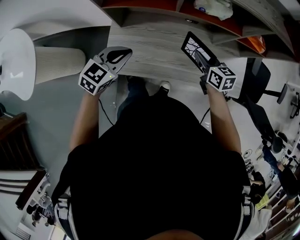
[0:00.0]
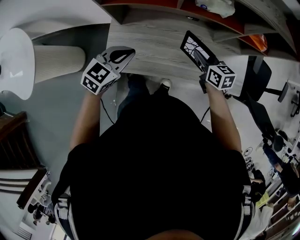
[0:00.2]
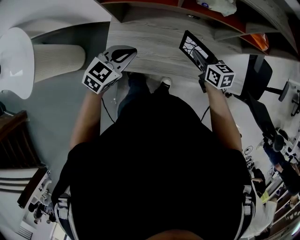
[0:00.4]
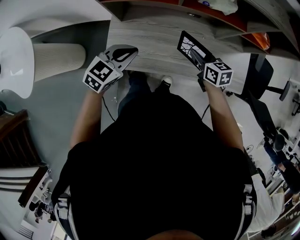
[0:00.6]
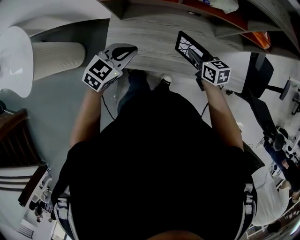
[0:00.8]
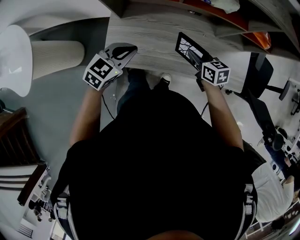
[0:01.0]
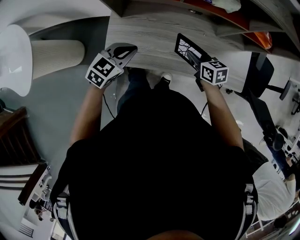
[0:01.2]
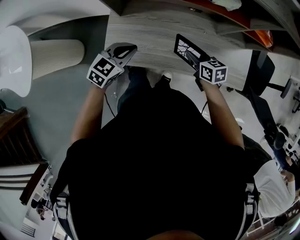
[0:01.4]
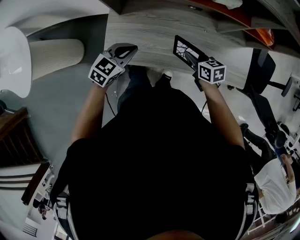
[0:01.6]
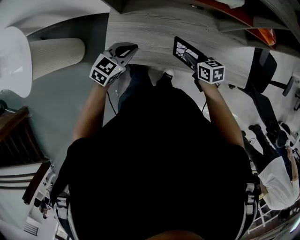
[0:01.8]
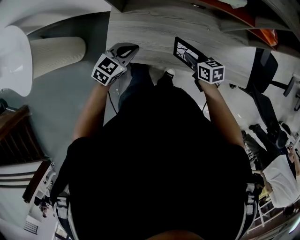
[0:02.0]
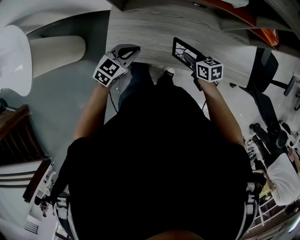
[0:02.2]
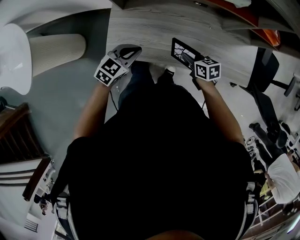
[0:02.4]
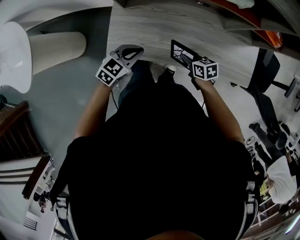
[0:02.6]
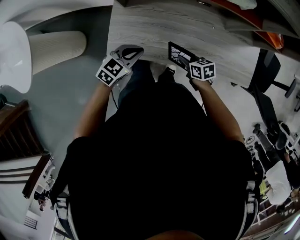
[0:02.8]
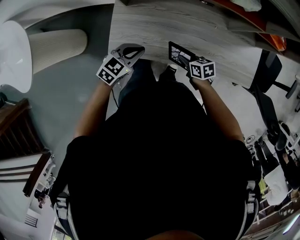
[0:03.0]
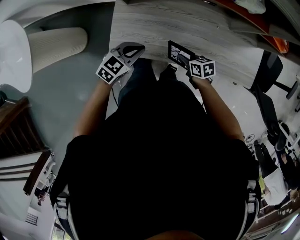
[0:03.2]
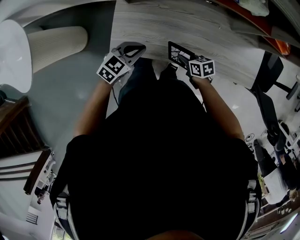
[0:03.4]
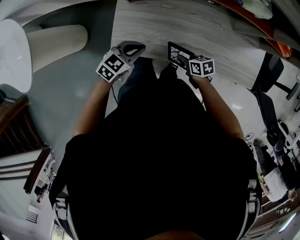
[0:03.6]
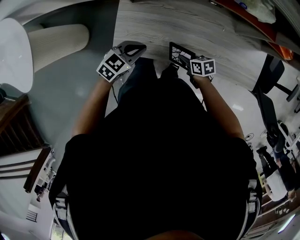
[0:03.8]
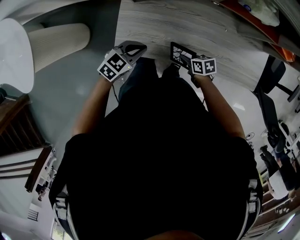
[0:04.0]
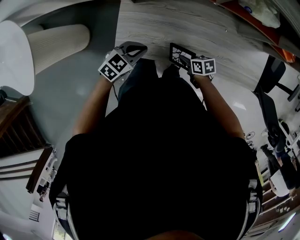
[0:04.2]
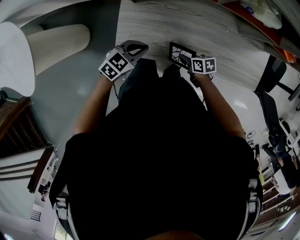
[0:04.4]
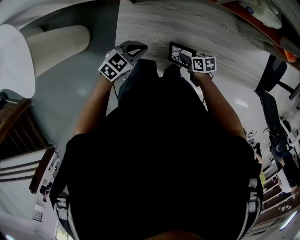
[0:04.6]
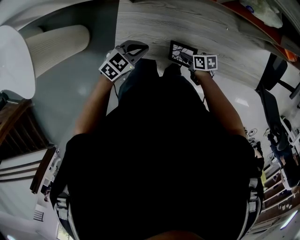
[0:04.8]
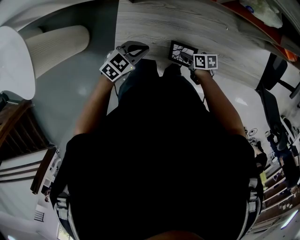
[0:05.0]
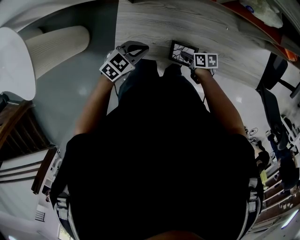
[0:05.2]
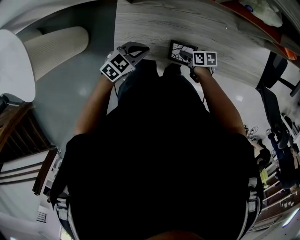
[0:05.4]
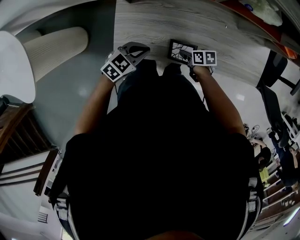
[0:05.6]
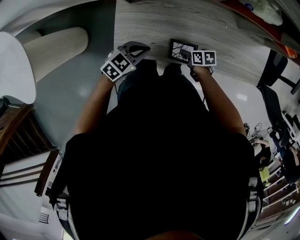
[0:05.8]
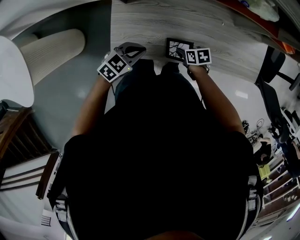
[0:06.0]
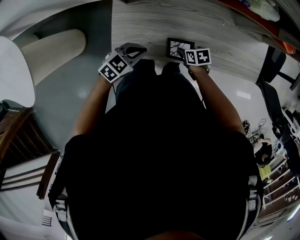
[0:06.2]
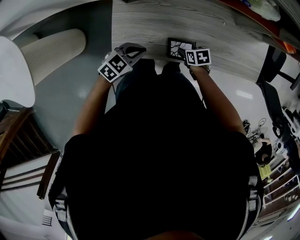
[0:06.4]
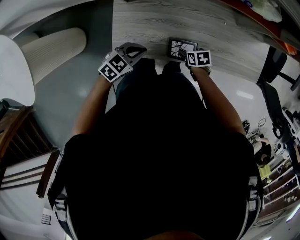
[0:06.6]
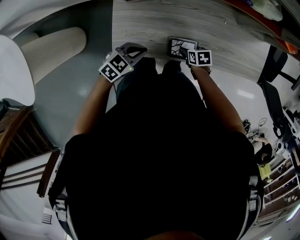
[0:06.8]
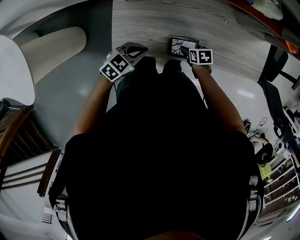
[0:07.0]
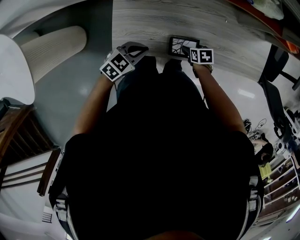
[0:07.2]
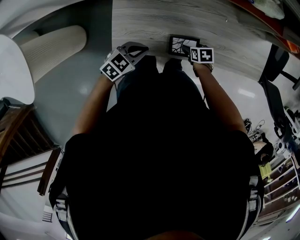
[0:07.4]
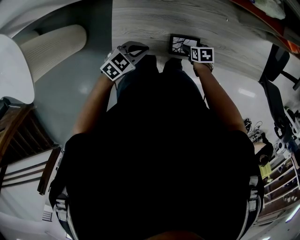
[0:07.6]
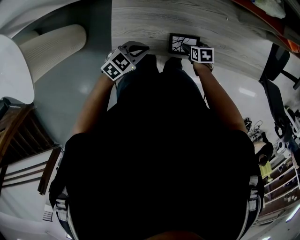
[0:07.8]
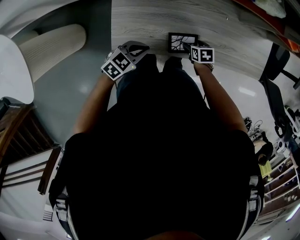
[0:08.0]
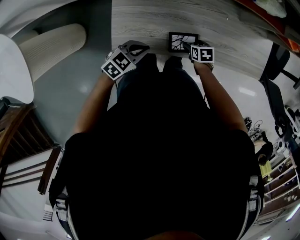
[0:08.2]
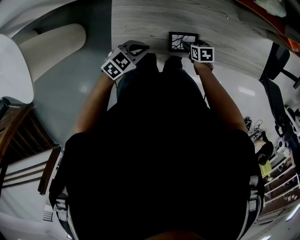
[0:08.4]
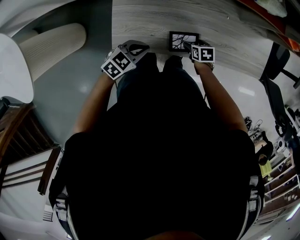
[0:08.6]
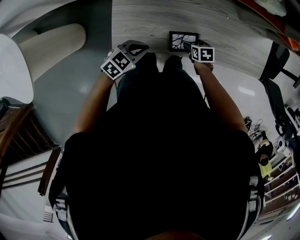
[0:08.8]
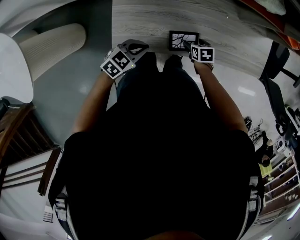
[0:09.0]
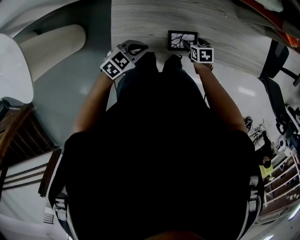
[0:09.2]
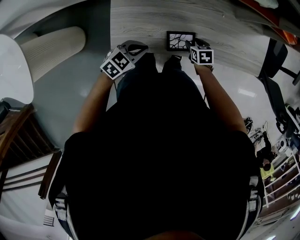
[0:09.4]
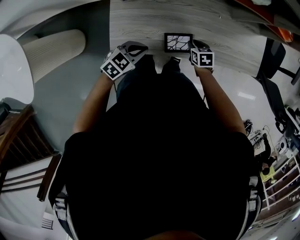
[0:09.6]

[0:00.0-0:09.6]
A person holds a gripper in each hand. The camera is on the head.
0.0 to 1.6 s: The left gripper travels downward by approximately 10 cm. Meanwhile the right gripper travels downward and backward by approximately 10 cm.
1.6 to 3.2 s: The left gripper goes roughly 5 cm downward; the right gripper heads downward, covering about 10 cm.
3.2 to 4.8 s: The right gripper is displaced downward by approximately 5 cm.
4.8 to 6.4 s: The right gripper opens up.
6.4 to 8.0 s: The right gripper opens up.
8.0 to 9.6 s: The right gripper travels upward by about 5 cm, and closes.

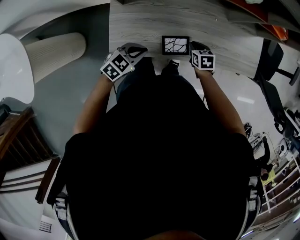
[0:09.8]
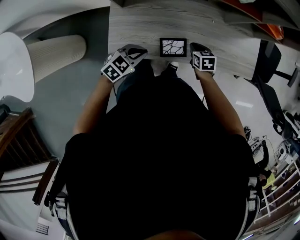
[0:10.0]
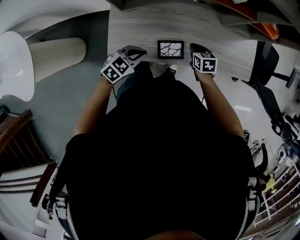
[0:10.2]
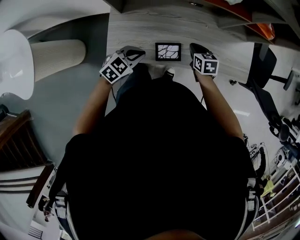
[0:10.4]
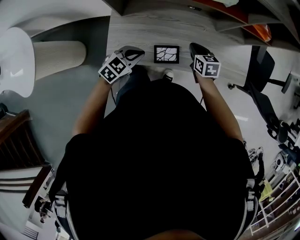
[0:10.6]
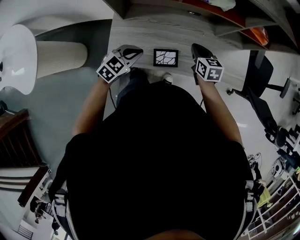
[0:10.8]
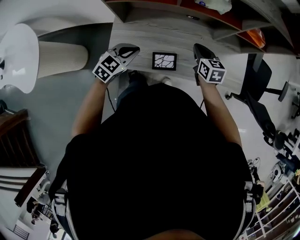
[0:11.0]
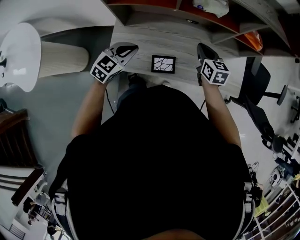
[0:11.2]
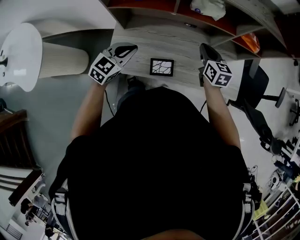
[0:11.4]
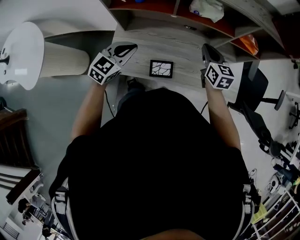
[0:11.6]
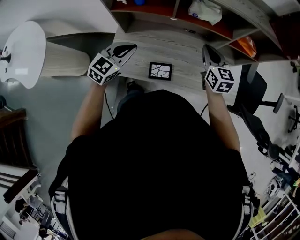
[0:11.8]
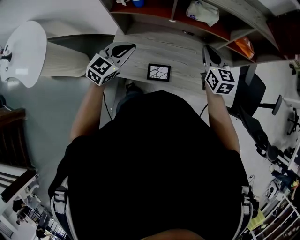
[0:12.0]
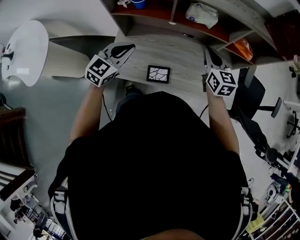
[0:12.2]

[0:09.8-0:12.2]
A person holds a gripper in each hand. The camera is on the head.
9.8 to 11.0 s: The right gripper is displaced upward by about 20 cm, and changes its angle by approximately 30 degrees, while the left gripper moves upward, about 10 cm.
11.0 to 12.2 s: The grippers both shift upward by roughly 15 cm.

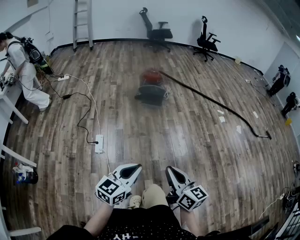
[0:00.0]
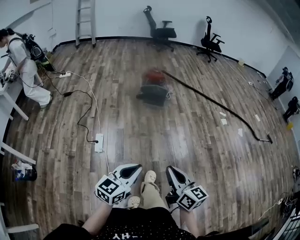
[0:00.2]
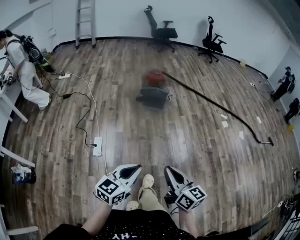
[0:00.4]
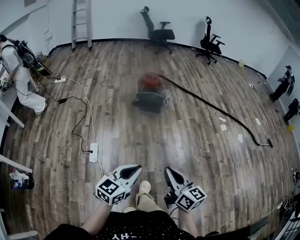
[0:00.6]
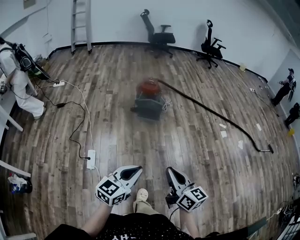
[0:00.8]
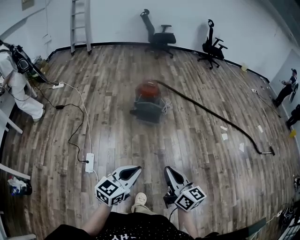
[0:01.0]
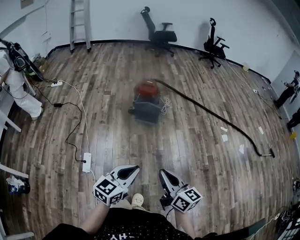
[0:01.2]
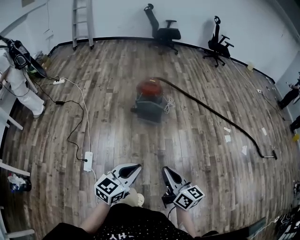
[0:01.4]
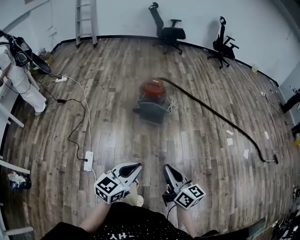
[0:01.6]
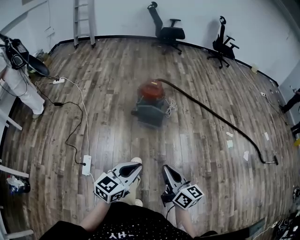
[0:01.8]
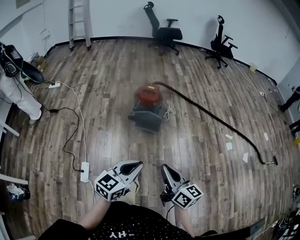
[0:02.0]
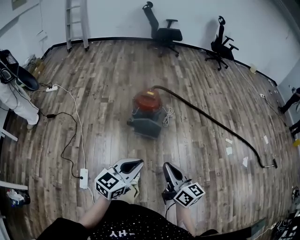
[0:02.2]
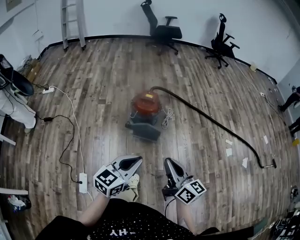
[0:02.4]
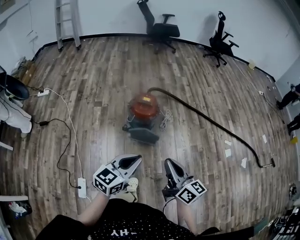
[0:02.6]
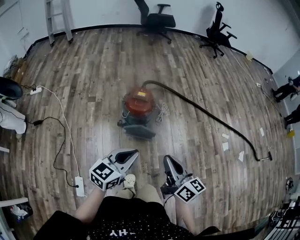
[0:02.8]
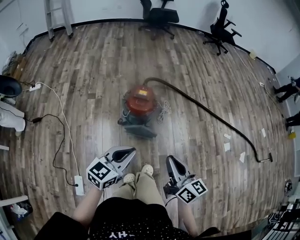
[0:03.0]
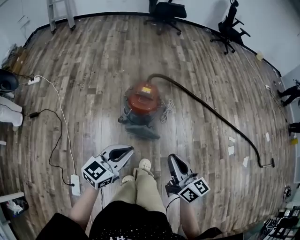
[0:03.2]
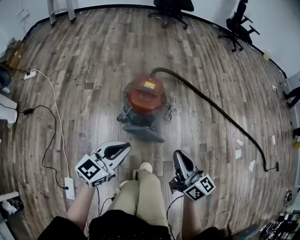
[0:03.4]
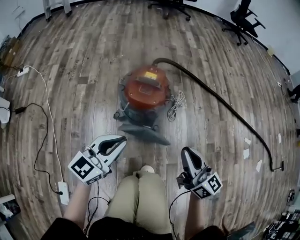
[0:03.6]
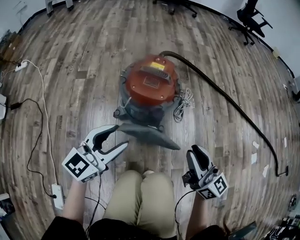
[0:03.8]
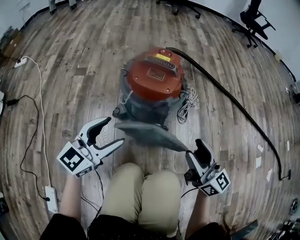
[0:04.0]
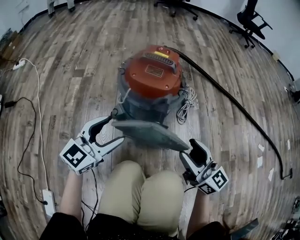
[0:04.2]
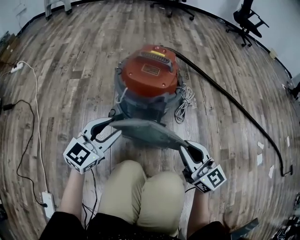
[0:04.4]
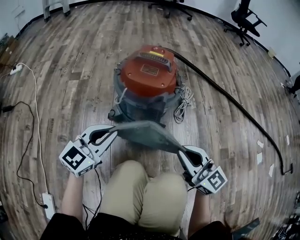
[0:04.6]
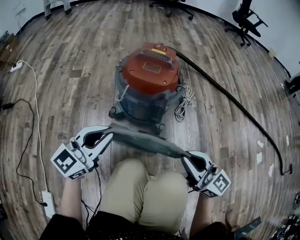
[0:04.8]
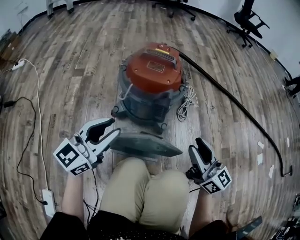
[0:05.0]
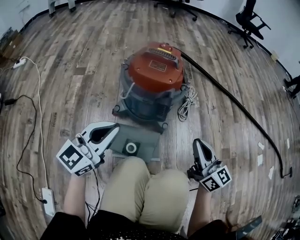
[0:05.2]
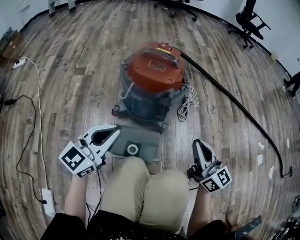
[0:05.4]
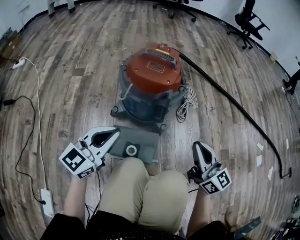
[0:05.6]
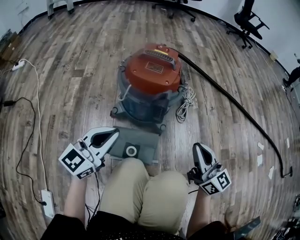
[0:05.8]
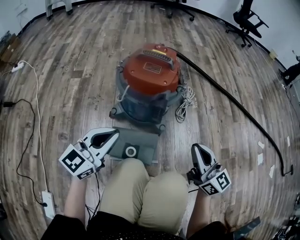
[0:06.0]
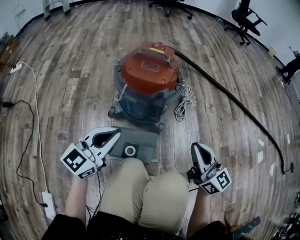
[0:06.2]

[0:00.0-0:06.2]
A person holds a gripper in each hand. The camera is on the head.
0.0 to 1.6 s: Both grippers move forward, some 40 cm.
1.6 to 3.2 s: Both grippers are carried forward, some 50 cm.
3.2 to 4.6 s: The two grippers go approximately 40 cm downward. The right gripper turns by about 30 degrees, and opens, then closes again; the left gripper opens and closes again.
4.6 to 6.2 s: The right gripper changes place by some 5 cm, and opens, then closes again.

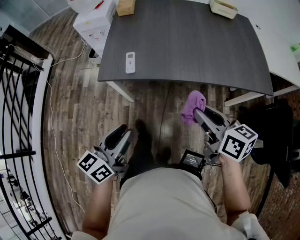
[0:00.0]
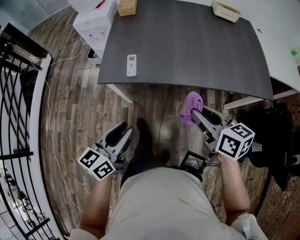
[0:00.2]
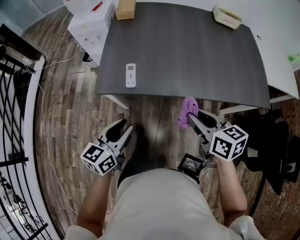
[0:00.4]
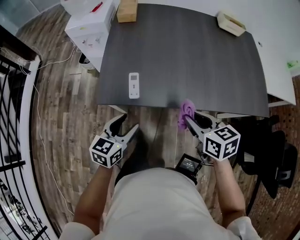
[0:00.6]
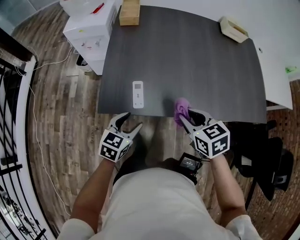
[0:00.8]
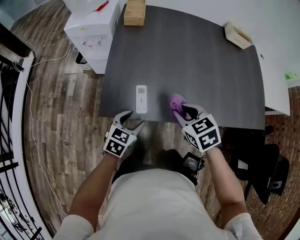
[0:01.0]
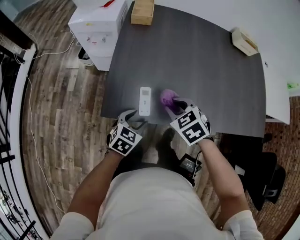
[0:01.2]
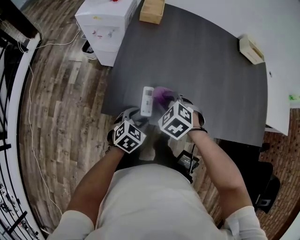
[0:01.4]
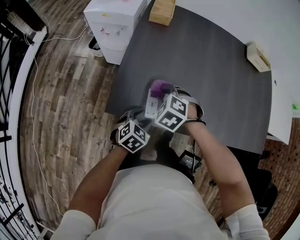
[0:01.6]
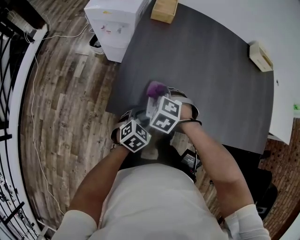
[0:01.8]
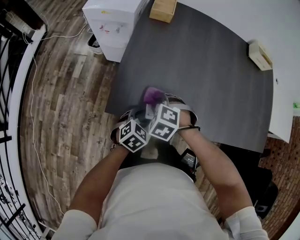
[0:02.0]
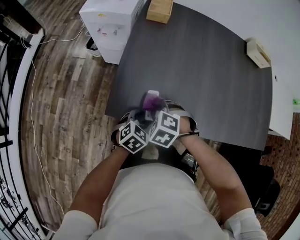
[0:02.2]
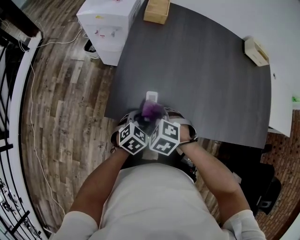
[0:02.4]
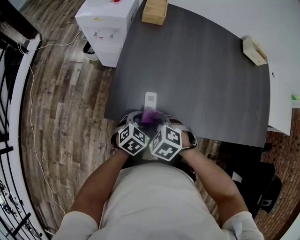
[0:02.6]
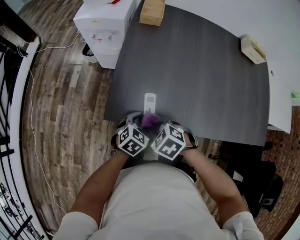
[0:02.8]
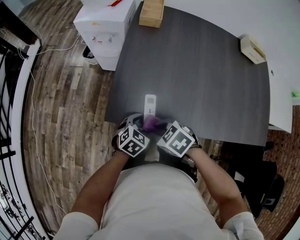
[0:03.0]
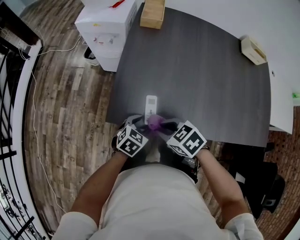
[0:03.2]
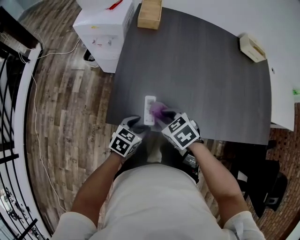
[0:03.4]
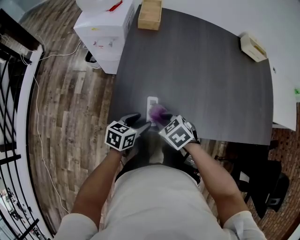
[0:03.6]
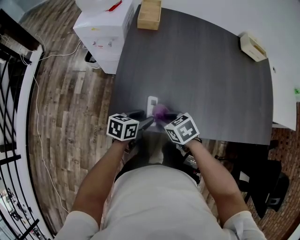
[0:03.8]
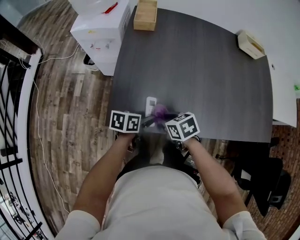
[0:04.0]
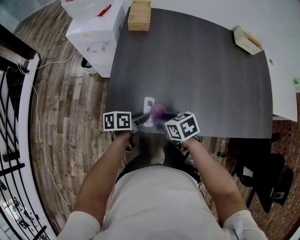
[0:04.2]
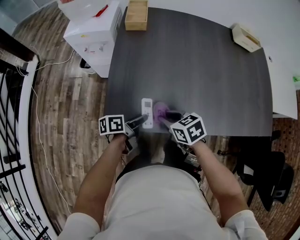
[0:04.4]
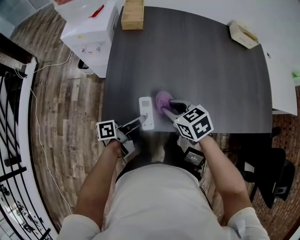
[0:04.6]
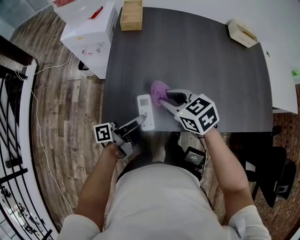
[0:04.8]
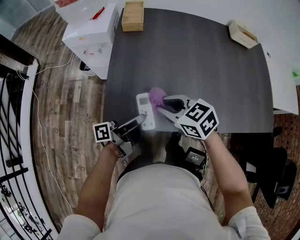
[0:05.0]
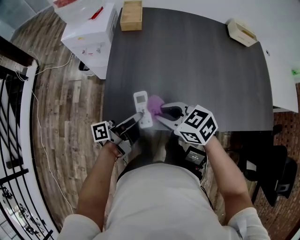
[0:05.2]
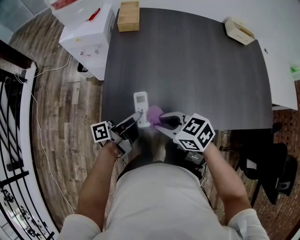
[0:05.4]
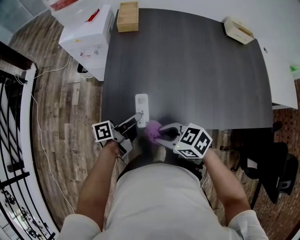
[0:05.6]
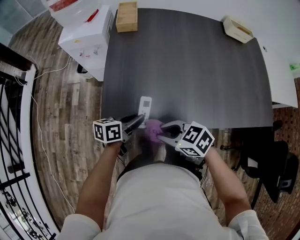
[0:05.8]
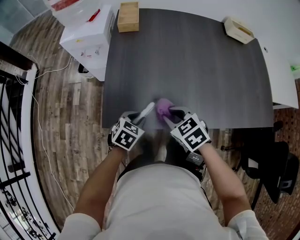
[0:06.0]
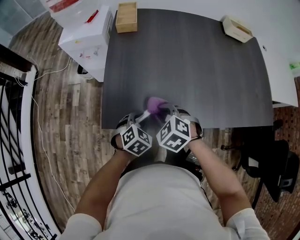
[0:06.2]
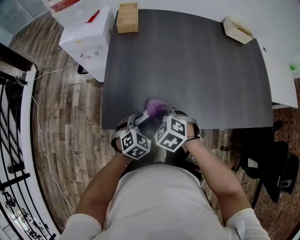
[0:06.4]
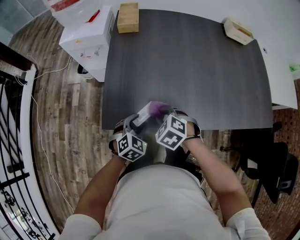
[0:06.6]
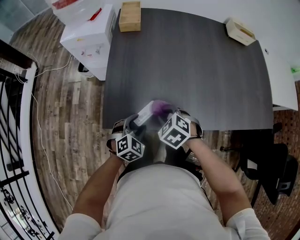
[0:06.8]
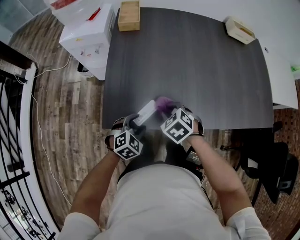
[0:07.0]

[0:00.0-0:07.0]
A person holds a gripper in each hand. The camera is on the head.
0.0 to 1.4 s: The right gripper travels forward, to the left and downward by some 40 cm, and twists some 60 degrees counterclockwise, seen from behind. Meanwhile the left gripper moves forward and downward, about 35 cm, and points its fingers some 40 degrees further downward.
1.4 to 2.8 s: The right gripper is displaced backward by roughly 10 cm.
2.8 to 4.2 s: The left gripper twists roughly 60 degrees counterclockwise, seen from behind, and closes. Meanwhile the right gripper moves approximately 10 cm, and rotates around the line of its fingers by some 40 degrees, clockwise from behind.
4.2 to 5.6 s: The left gripper heads upward, covering approximately 5 cm, and turns by approximately 30 degrees. Meanwhile the right gripper ends up roughly 10 cm from where it was, and changes its angle by roughly 30 degrees.
5.6 to 7.0 s: The left gripper shifts approximately 5 cm downward, rolls clockwise, seen from behind, by roughly 90 degrees, and opens. Meanwhile the right gripper moves roughly 15 cm, and rotates roughly 40 degrees.
